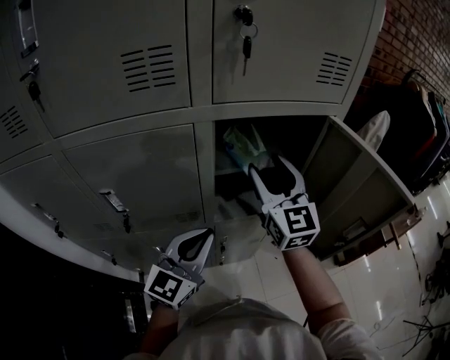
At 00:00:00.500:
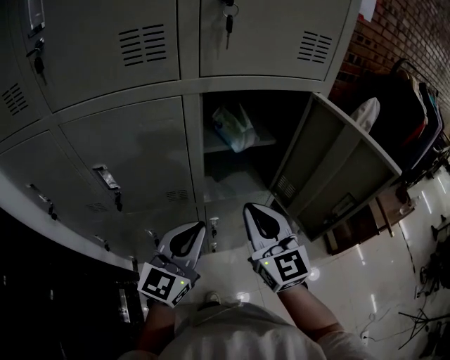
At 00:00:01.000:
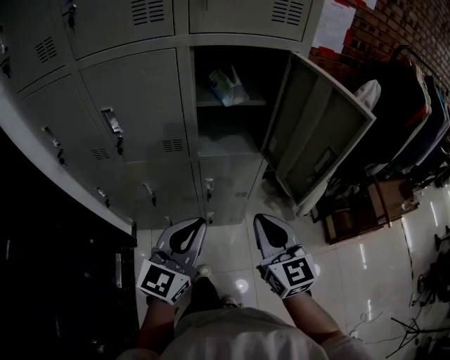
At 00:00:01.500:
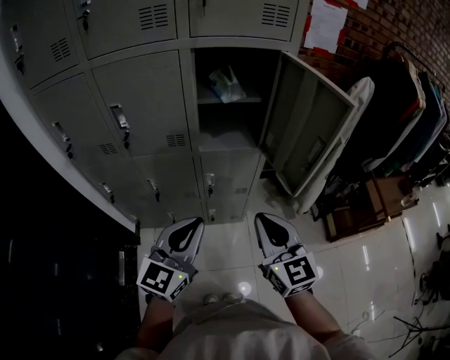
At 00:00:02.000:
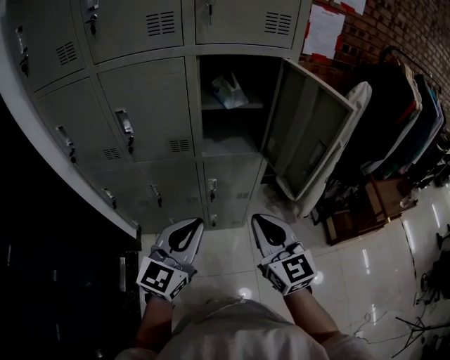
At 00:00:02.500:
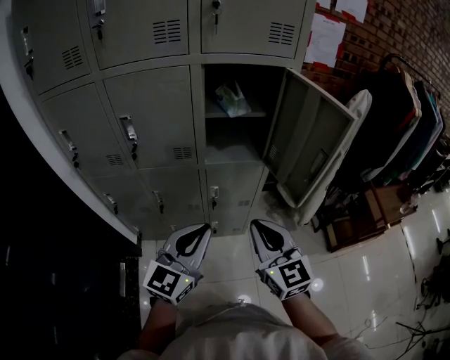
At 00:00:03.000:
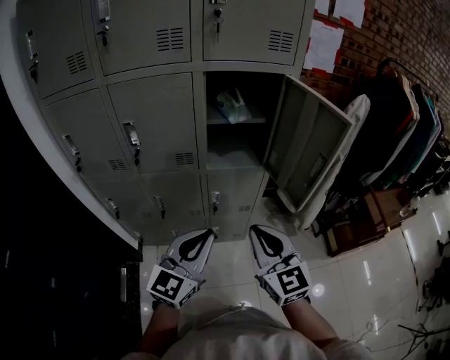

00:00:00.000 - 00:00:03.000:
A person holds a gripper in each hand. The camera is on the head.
00:00:00.000 - 00:00:01.500: Both grippers move backward, some 30 cm. The right gripper closes its fingers.
00:00:01.500 - 00:00:03.000: The grippers move only a little.

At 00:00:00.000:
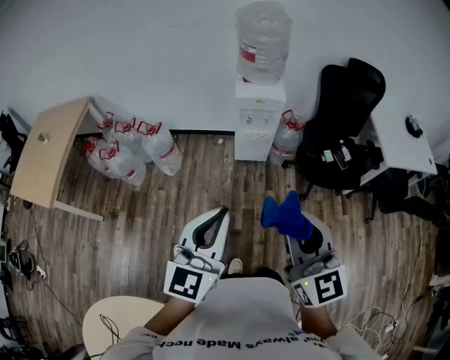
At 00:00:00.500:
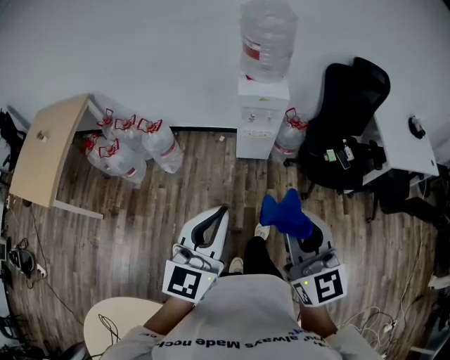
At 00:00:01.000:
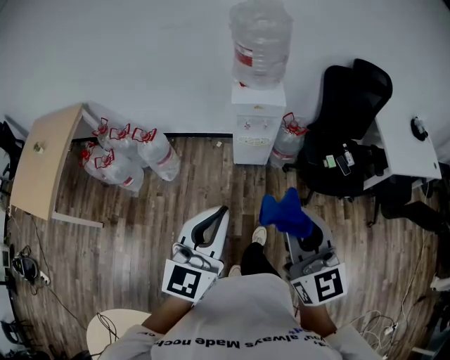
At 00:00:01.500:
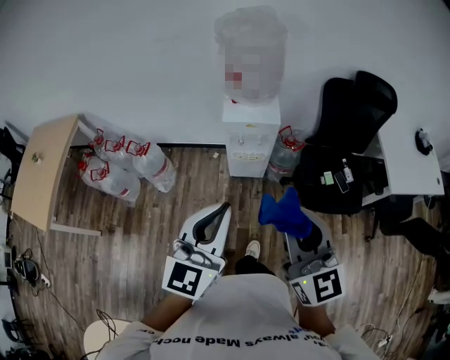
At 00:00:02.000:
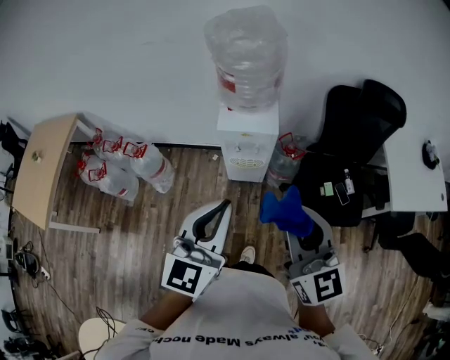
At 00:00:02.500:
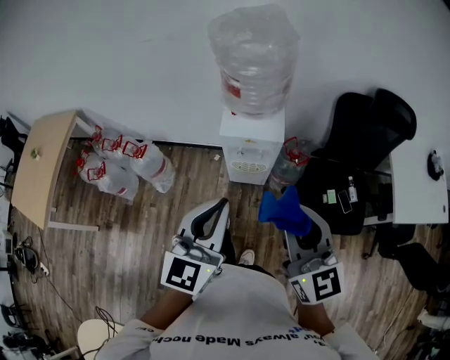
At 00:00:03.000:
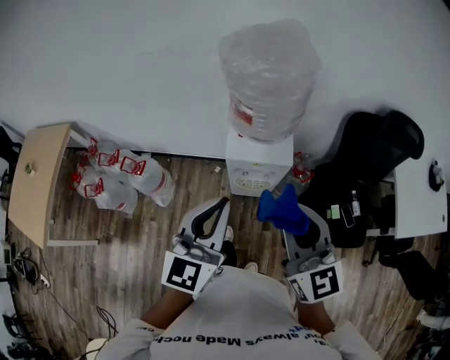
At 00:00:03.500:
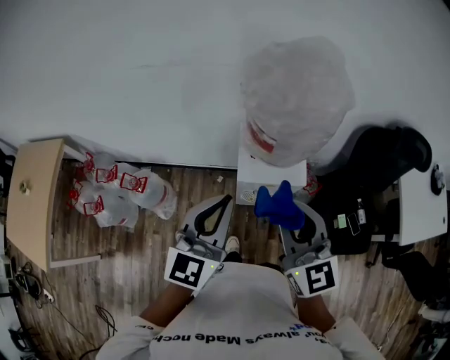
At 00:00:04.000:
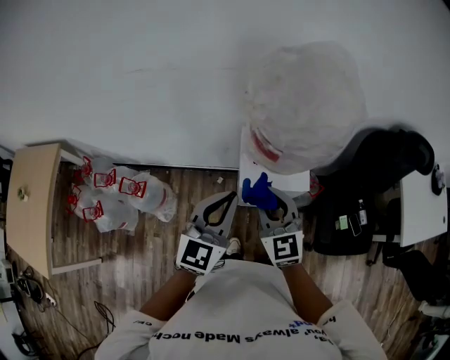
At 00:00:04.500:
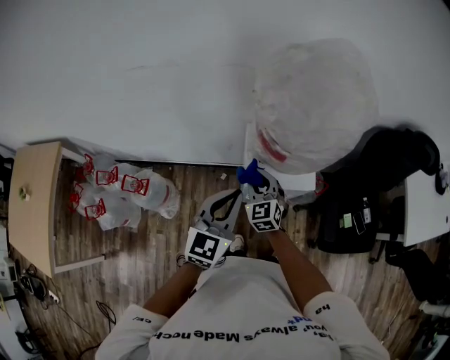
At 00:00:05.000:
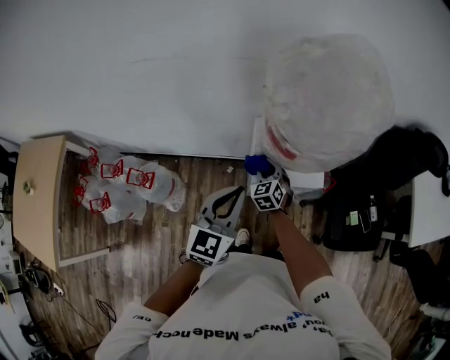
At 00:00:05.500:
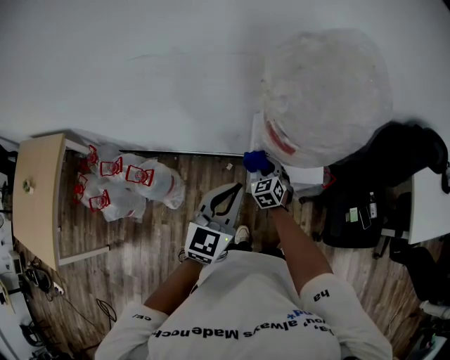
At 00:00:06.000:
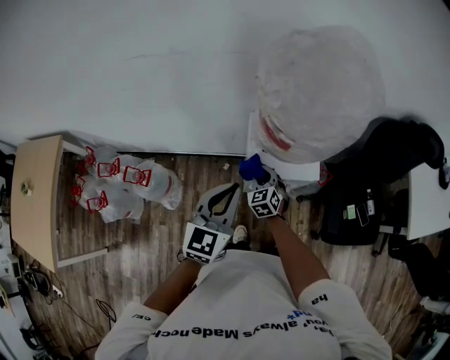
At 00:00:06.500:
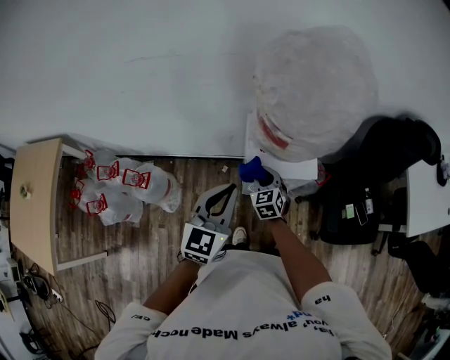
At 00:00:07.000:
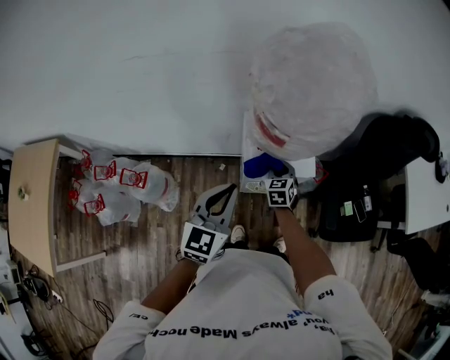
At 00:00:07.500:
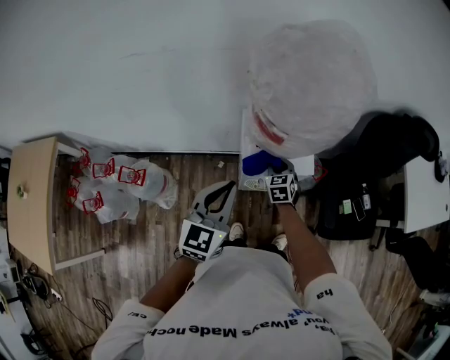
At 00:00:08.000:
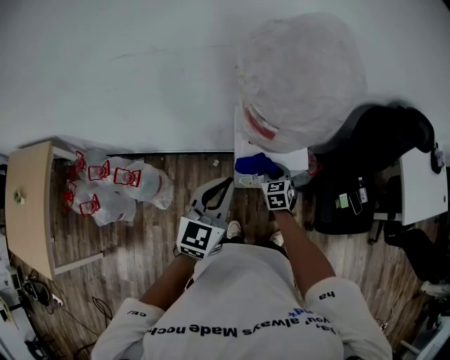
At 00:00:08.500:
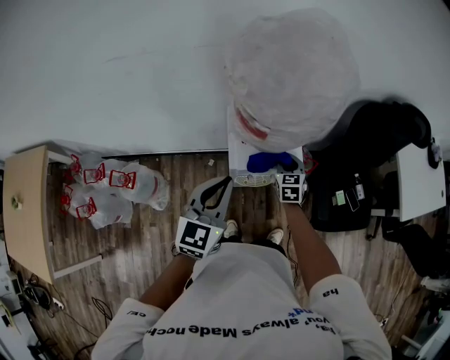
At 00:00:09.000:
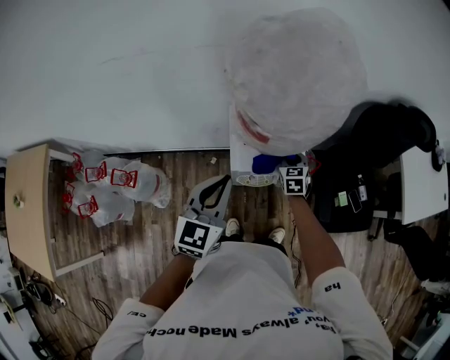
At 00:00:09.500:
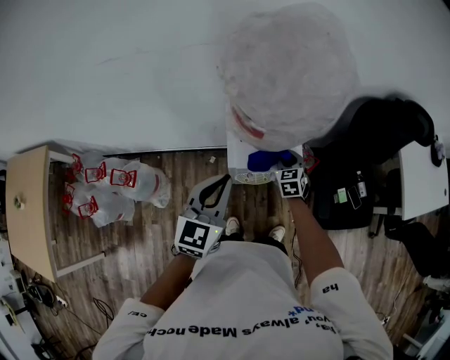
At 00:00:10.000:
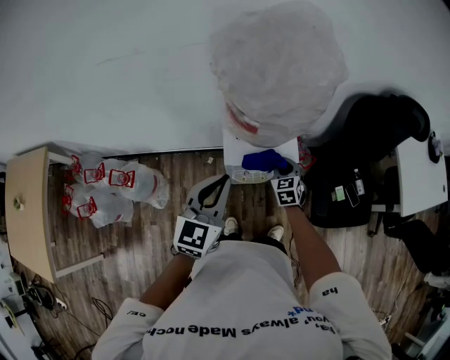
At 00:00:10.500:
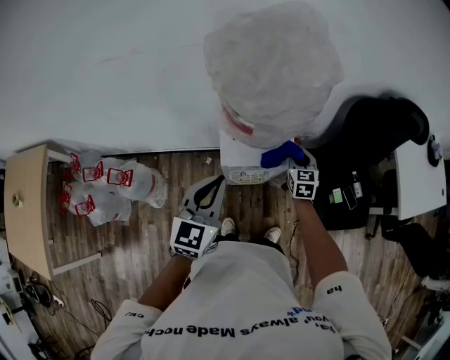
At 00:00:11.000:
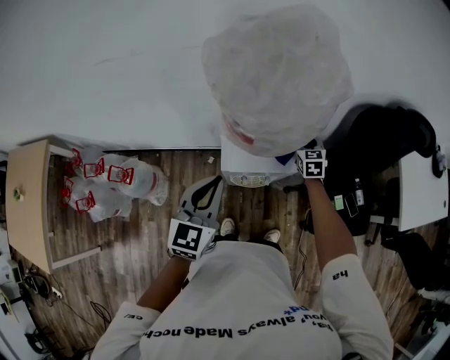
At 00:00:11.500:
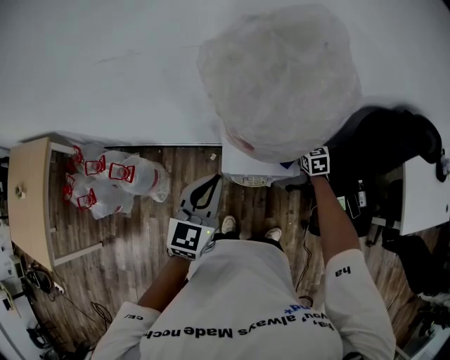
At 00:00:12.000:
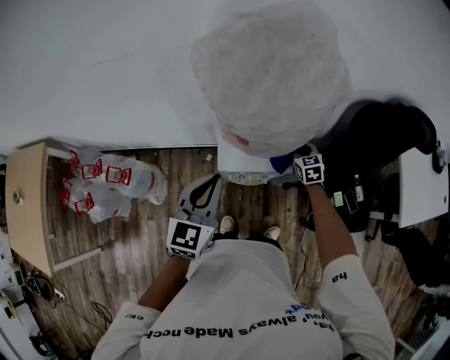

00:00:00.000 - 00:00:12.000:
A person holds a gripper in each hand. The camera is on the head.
00:00:00.000 - 00:00:02.000: Both grippers move forward and to the right, about 30 cm.
00:00:02.000 - 00:00:04.000: The left gripper is displaced forward by approximately 35 cm, while the right gripper shifts some 40 cm forward and to the left.
00:00:04.000 - 00:00:06.000: The left gripper is displaced downward by roughly 5 cm. The right gripper heads downward, covering roughly 25 cm, and rotates roughly 30 degrees.
00:00:06.000 - 00:00:08.000: The right gripper shifts some 10 cm to the right.
00:00:08.000 - 00:00:10.000: The right gripper moves to the right, approximately 10 cm.
00:00:10.000 - 00:00:12.000: The right gripper shifts some 15 cm forward and to the right.

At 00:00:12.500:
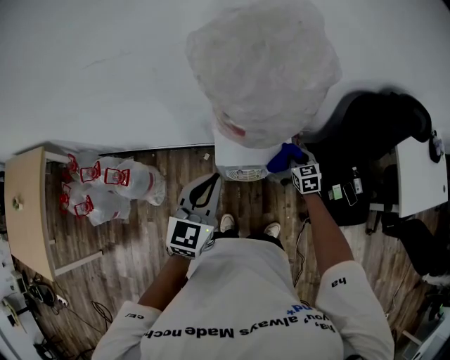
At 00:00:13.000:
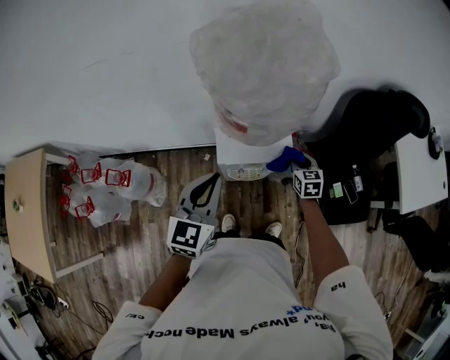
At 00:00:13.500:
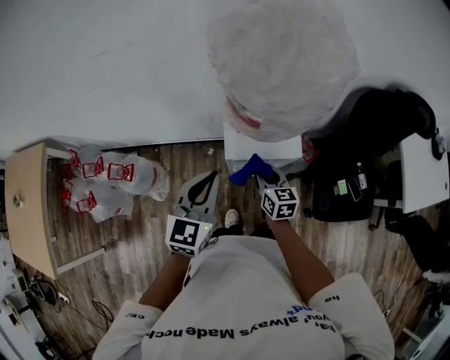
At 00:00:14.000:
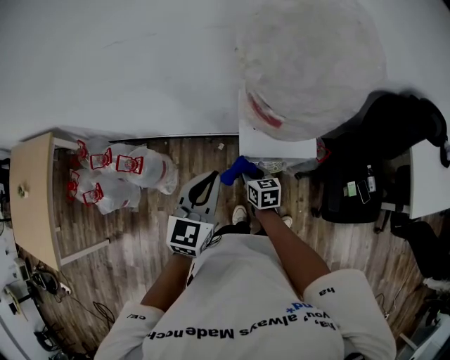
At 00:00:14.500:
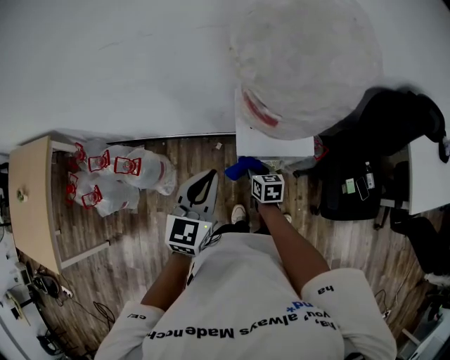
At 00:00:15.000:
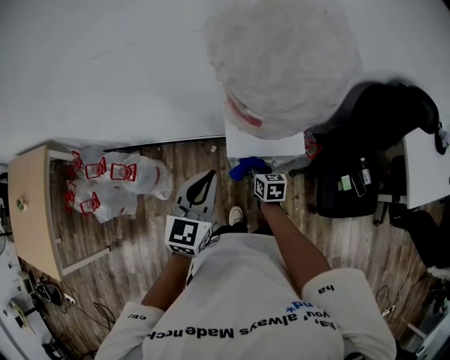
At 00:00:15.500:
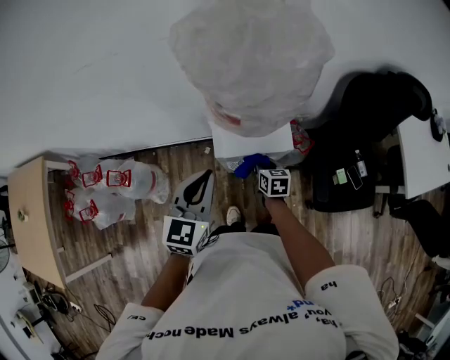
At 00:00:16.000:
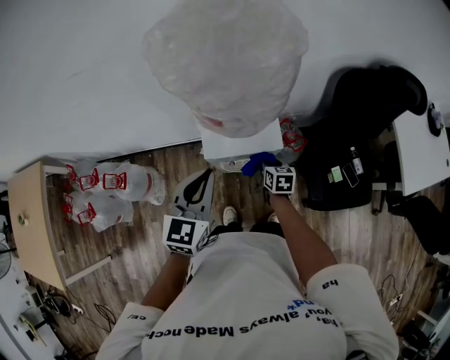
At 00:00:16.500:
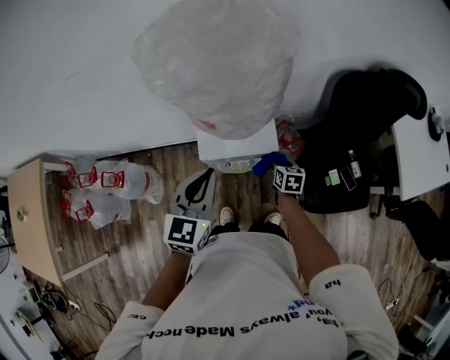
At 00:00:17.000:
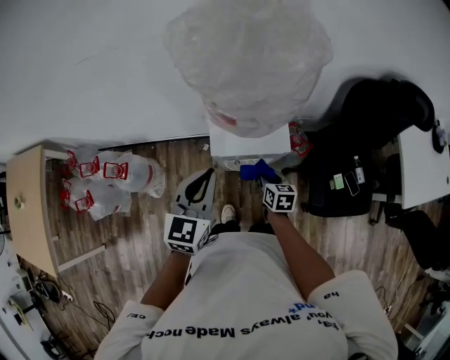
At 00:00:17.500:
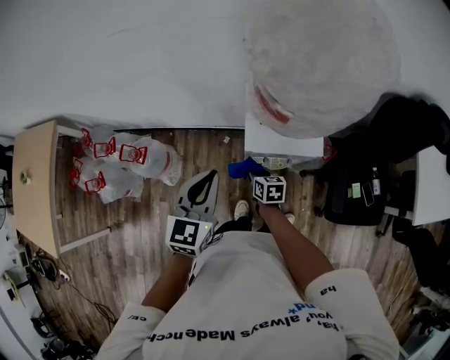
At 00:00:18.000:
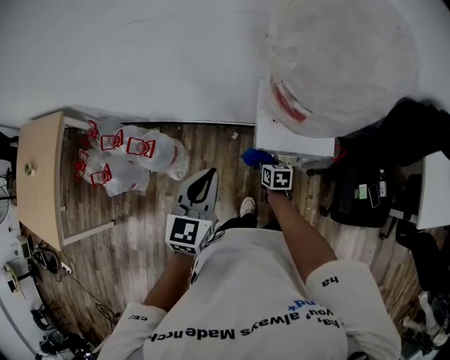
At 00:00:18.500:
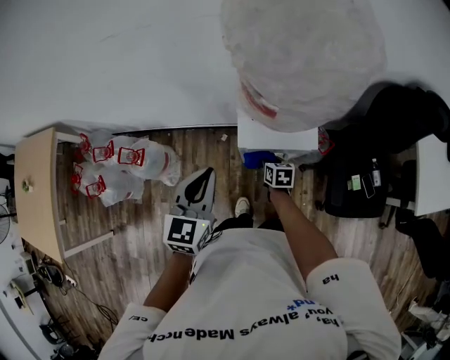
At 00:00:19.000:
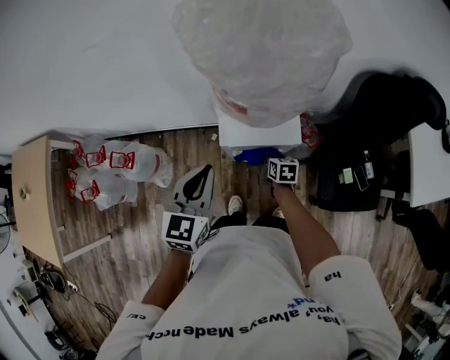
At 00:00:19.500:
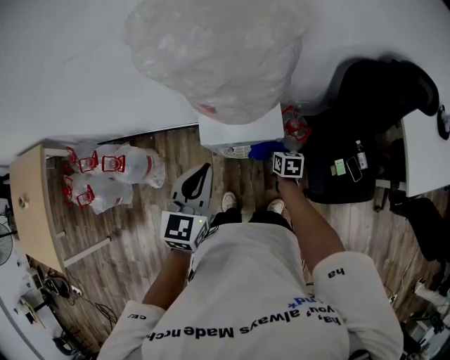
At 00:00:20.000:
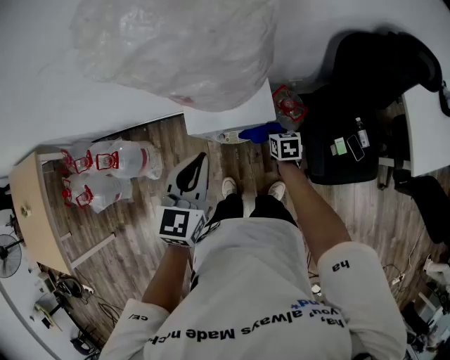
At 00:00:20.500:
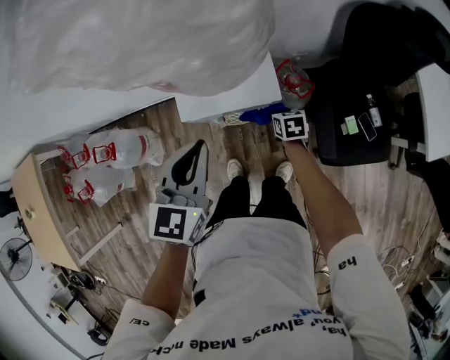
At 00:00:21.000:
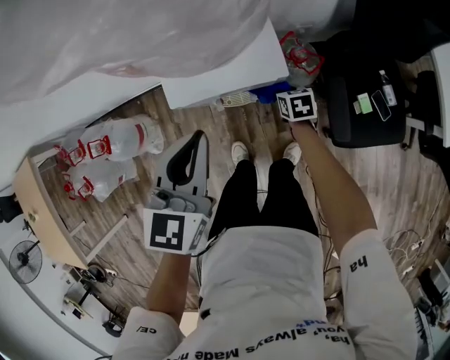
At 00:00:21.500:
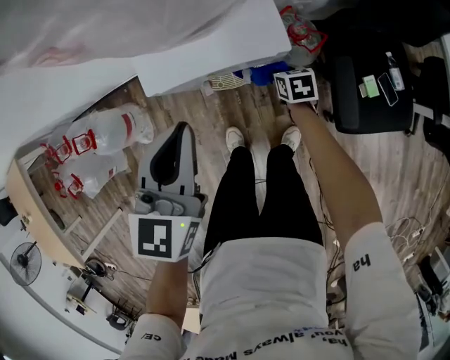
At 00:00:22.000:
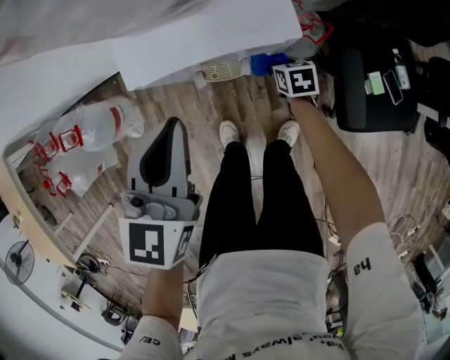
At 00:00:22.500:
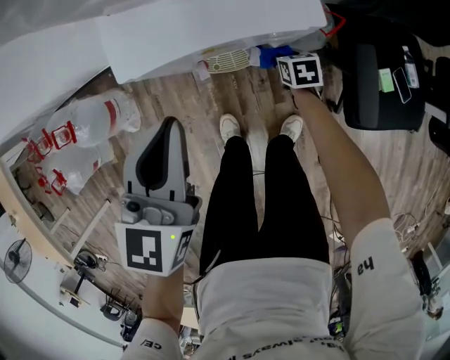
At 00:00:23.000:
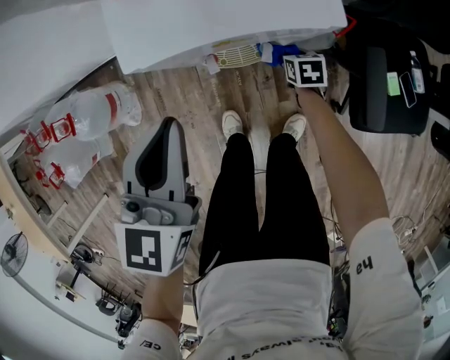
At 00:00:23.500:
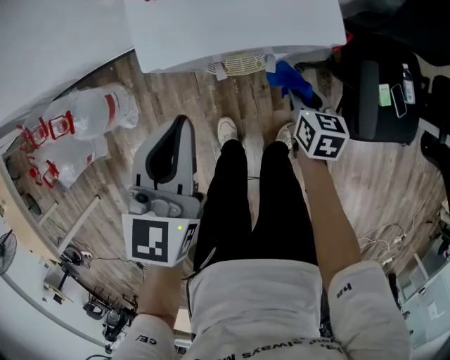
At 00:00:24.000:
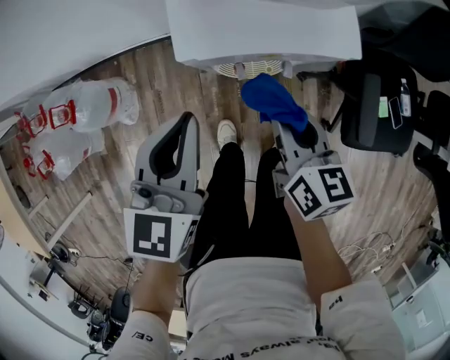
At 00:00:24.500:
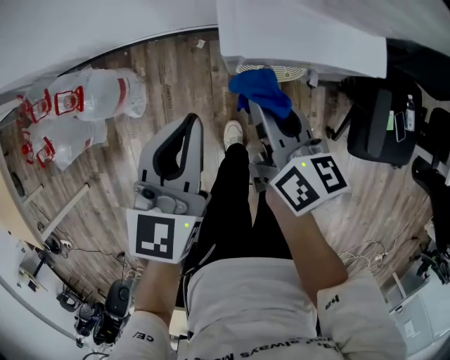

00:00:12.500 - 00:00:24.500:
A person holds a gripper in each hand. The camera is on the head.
00:00:12.500 - 00:00:14.500: The right gripper goes about 25 cm to the left, and rotates about 30 degrees. Meanwhile the left gripper goes some 10 cm to the left.
00:00:14.500 - 00:00:16.500: The right gripper travels to the right by about 25 cm. Meanwhile the left gripper goes about 15 cm to the right.
00:00:16.500 - 00:00:18.500: Both grippers travel together to the left, some 15 cm.
00:00:18.500 - 00:00:20.500: Both grippers move to the right, approximately 15 cm.
00:00:20.500 - 00:00:22.500: Both grippers move downward, about 15 cm.
00:00:22.500 - 00:00:24.500: The left gripper goes approximately 10 cm to the left, while the right gripper goes approximately 35 cm upward and to the left, and tilts its fingers about 40 degrees upward.
